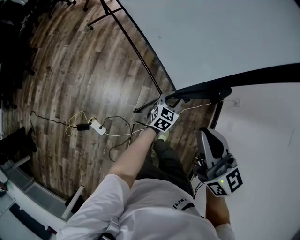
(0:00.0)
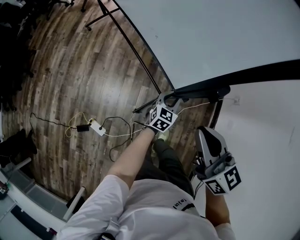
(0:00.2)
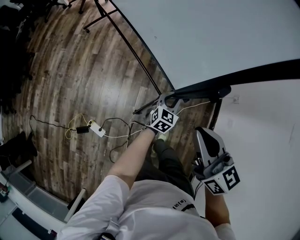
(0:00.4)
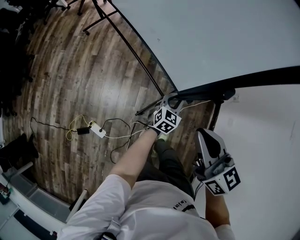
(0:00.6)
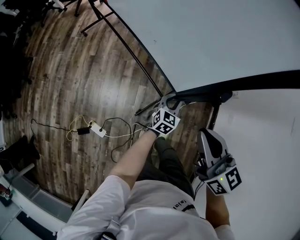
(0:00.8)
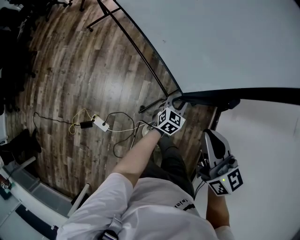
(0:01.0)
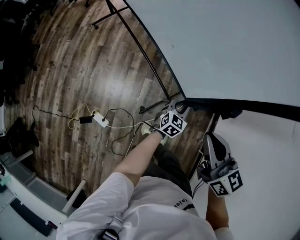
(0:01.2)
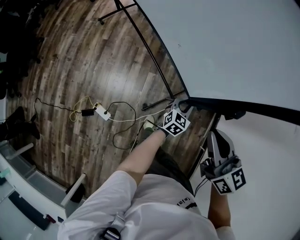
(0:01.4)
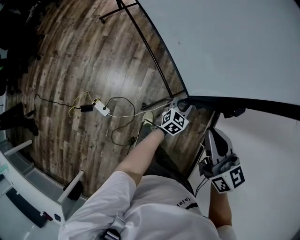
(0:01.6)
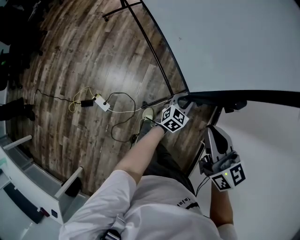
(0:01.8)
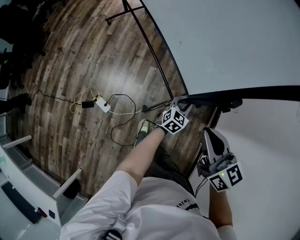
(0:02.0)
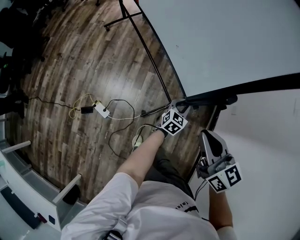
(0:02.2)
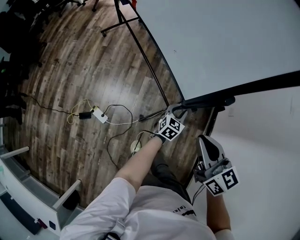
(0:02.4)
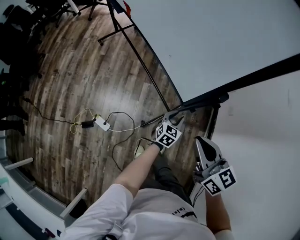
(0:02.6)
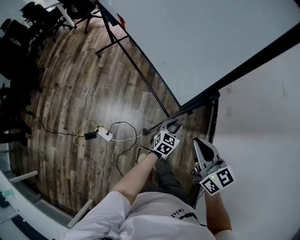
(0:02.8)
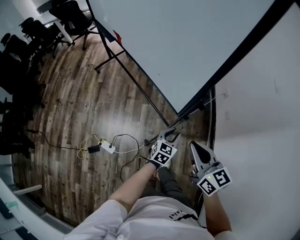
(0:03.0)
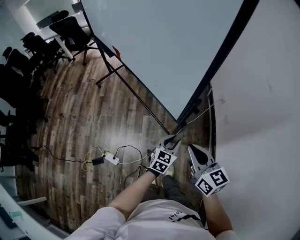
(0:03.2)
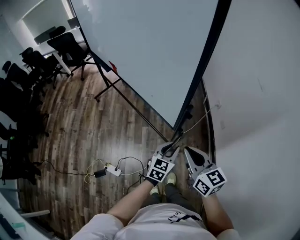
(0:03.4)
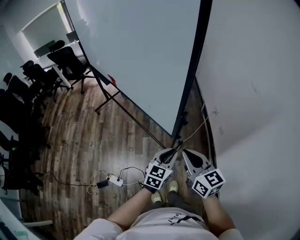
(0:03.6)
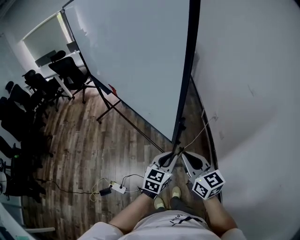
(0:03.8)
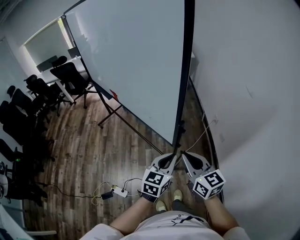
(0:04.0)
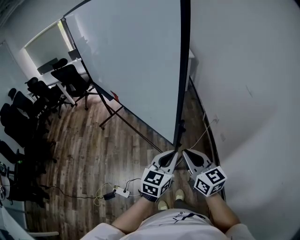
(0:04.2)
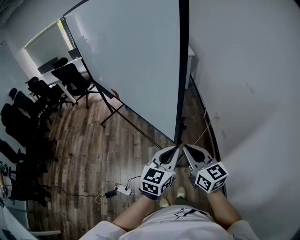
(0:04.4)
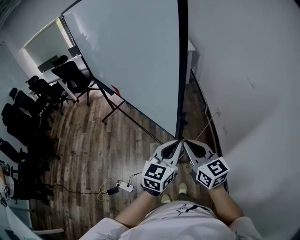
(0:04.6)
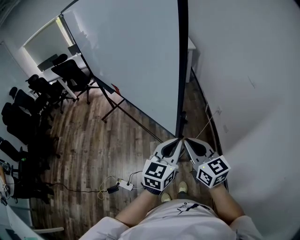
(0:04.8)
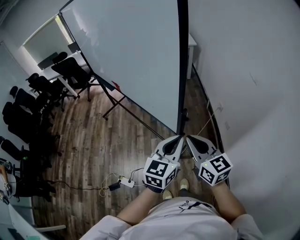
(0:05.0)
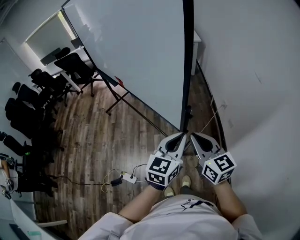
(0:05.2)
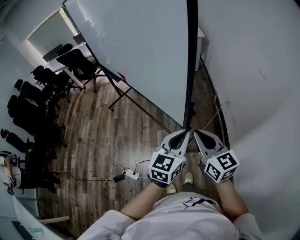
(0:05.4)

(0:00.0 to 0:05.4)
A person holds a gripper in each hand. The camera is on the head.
0:00.0 - 0:01.4: Both grippers move backward and to the right, roughly 15 cm.
0:01.4 - 0:02.8: The two grippers go about 15 cm backward.
0:02.8 - 0:04.0: The right gripper heads upward, covering some 10 cm. The left gripper moves upward, approximately 30 cm, and closes.
0:04.0 - 0:05.4: The left gripper goes approximately 5 cm upward.

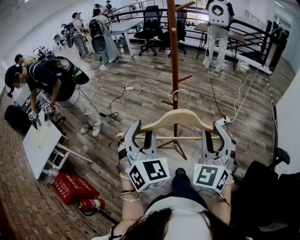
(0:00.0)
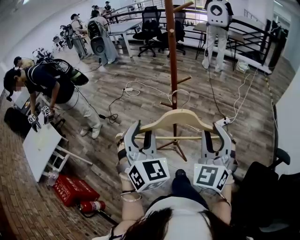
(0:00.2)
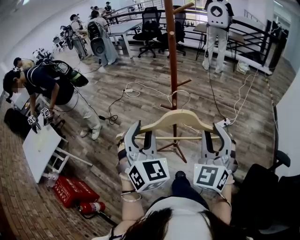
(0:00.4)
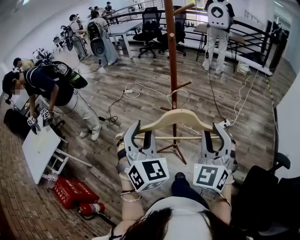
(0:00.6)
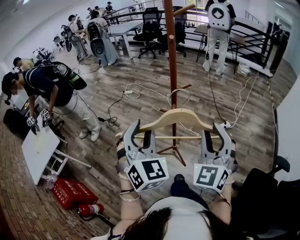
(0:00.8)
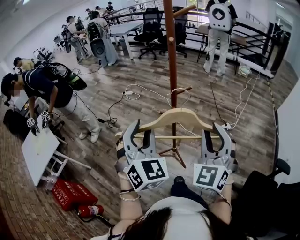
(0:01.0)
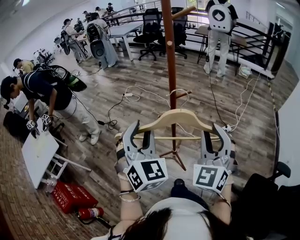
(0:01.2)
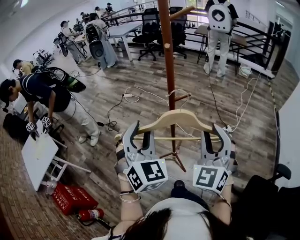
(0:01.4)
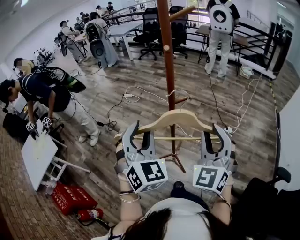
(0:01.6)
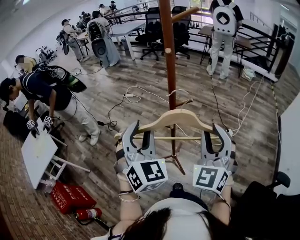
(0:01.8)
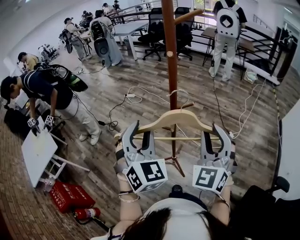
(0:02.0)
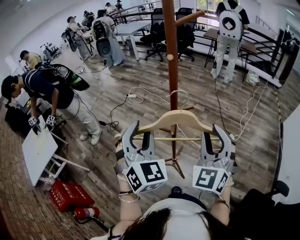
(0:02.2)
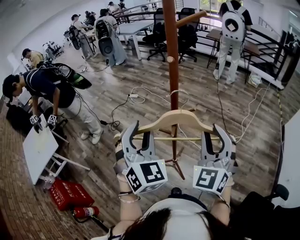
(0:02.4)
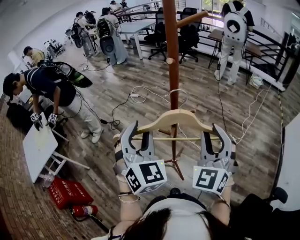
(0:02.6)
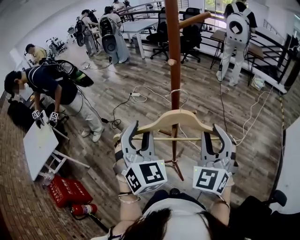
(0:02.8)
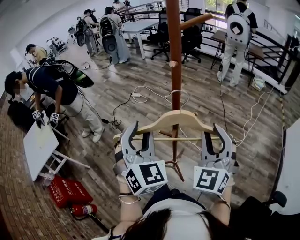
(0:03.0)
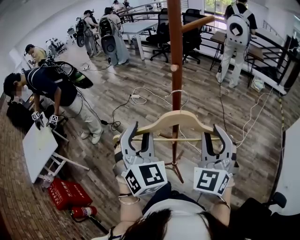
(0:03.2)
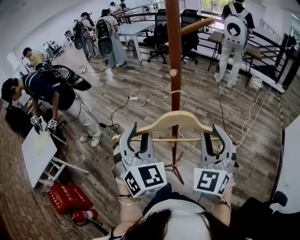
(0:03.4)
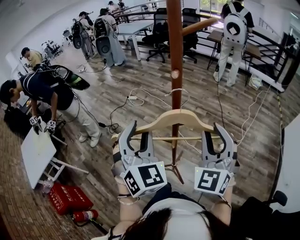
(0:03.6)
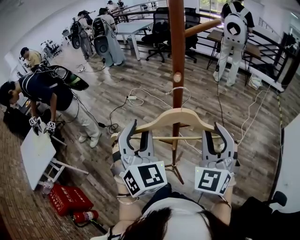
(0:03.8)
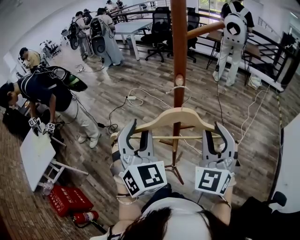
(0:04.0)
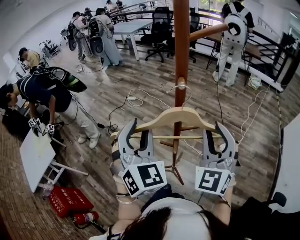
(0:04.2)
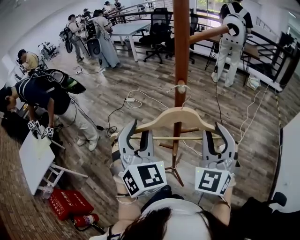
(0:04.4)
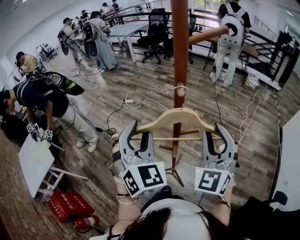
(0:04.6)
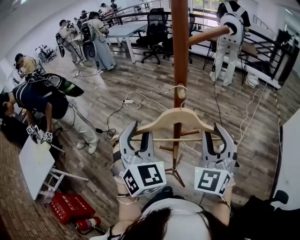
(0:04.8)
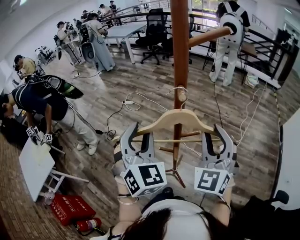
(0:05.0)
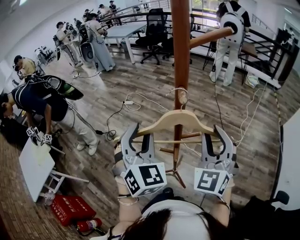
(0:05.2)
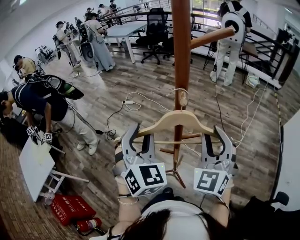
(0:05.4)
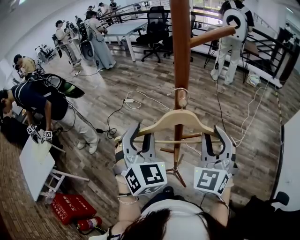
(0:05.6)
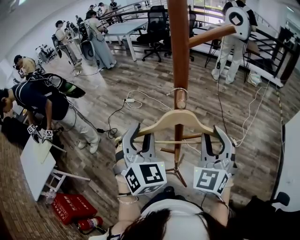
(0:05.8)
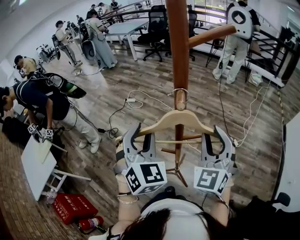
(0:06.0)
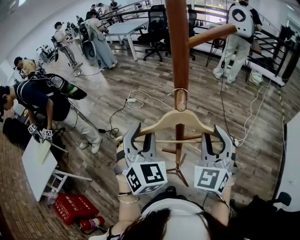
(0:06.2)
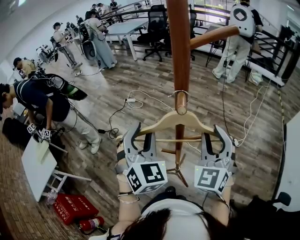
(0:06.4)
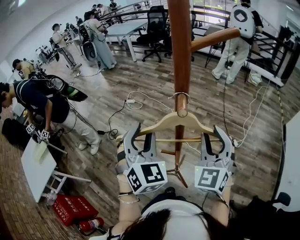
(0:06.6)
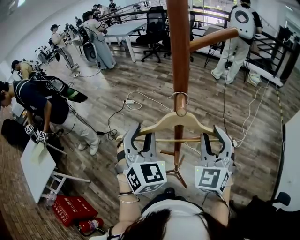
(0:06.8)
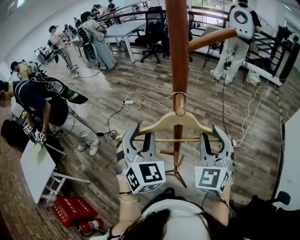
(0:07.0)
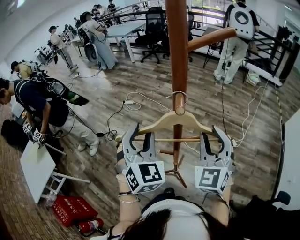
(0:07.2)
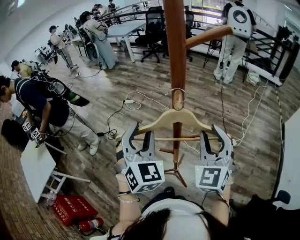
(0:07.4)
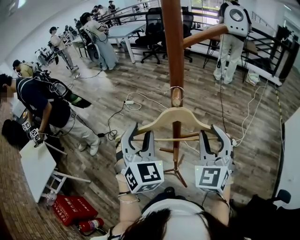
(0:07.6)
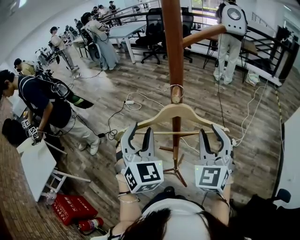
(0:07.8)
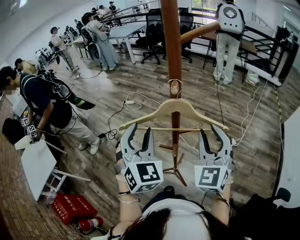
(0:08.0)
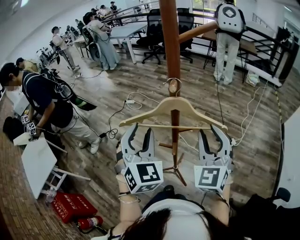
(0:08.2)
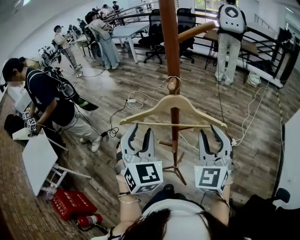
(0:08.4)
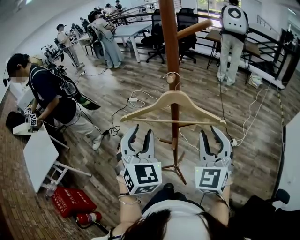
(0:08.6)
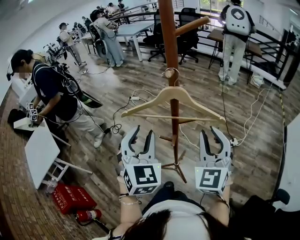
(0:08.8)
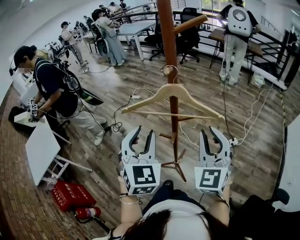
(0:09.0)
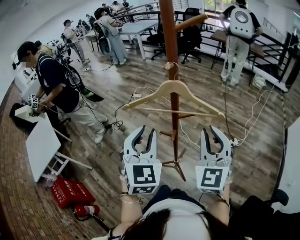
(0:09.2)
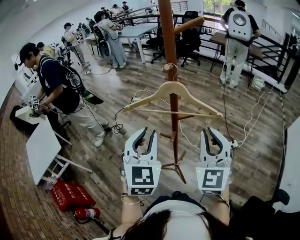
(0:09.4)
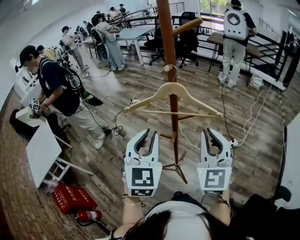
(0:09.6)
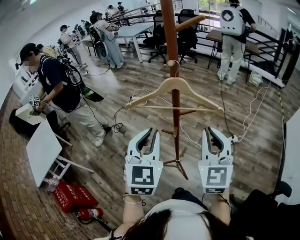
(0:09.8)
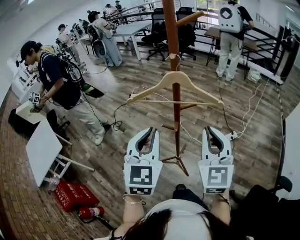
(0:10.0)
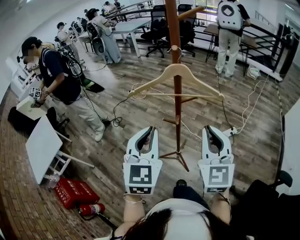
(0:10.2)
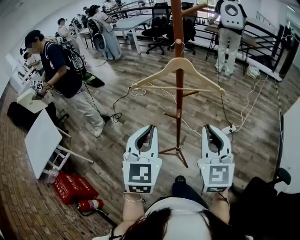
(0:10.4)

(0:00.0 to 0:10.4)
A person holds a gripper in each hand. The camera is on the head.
0:00.0 - 0:01.4: Both grippers move forward, about 10 cm.
0:01.4 - 0:03.0: The grippers both shift forward by some 10 cm.
0:03.0 - 0:04.4: Both grippers travel together forward, roughly 5 cm.
0:04.4 - 0:06.0: The right gripper ends up about 5 cm from where it was. Meanwhile the left gripper ends up approximately 5 cm from where it was.
0:06.0 - 0:07.4: The grippers make only small movements.
0:07.4 - 0:09.0: The grippers both shift backward by roughly 10 cm.
0:09.0 - 0:10.4: The two grippers go about 10 cm backward. The left gripper closes its fingers.

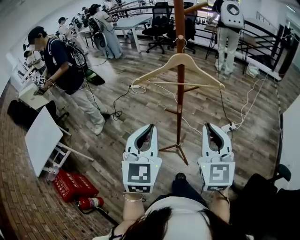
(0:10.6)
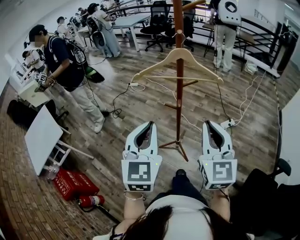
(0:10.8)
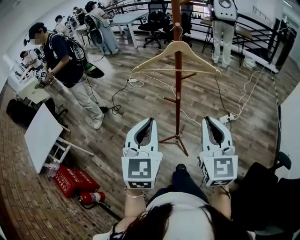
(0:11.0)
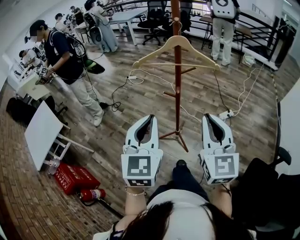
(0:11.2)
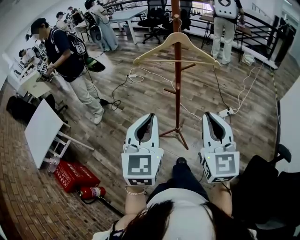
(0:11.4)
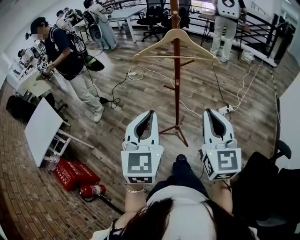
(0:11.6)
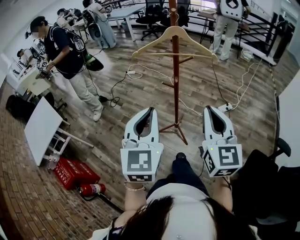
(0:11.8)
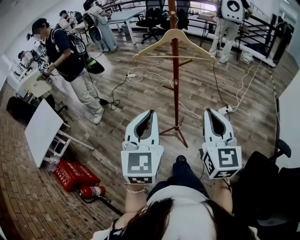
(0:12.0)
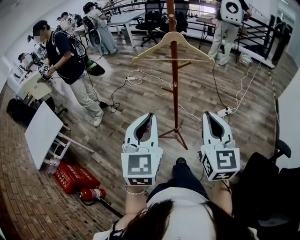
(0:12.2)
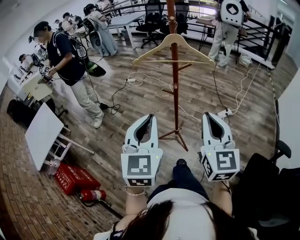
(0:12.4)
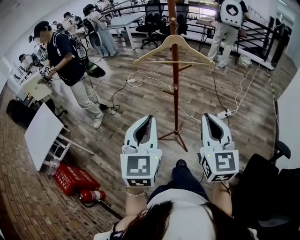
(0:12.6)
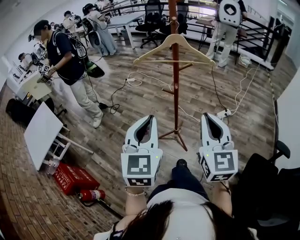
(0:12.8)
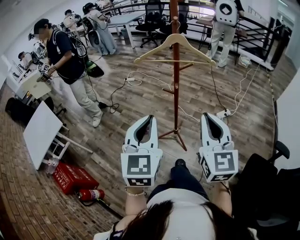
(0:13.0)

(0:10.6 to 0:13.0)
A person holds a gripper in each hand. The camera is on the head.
0:10.6 - 0:11.8: Both grippers travel together backward, about 10 cm.
0:11.8 - 0:13.0: The grippers stay close to where they were, moving slightly.

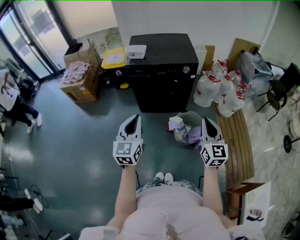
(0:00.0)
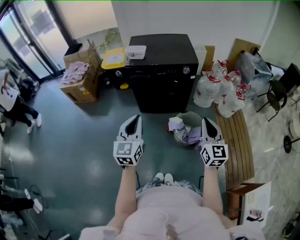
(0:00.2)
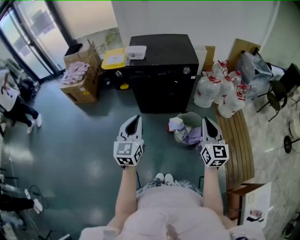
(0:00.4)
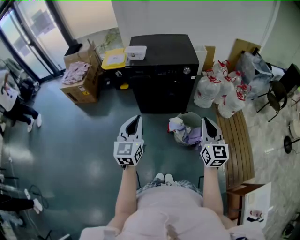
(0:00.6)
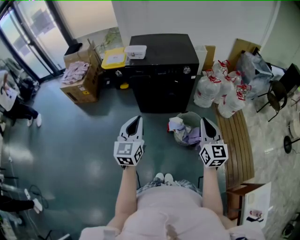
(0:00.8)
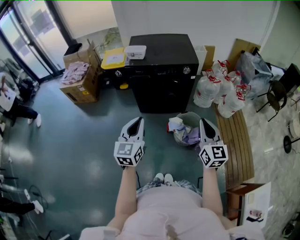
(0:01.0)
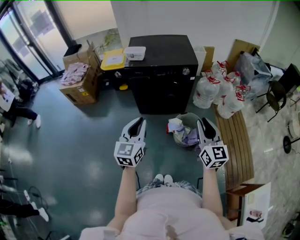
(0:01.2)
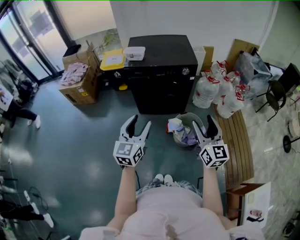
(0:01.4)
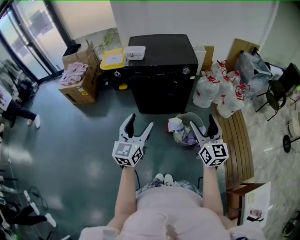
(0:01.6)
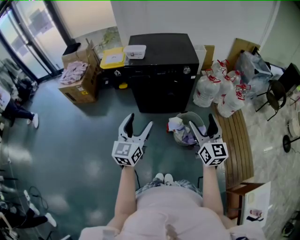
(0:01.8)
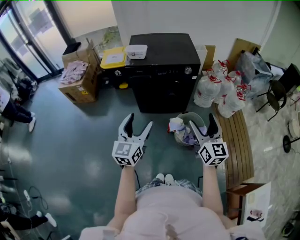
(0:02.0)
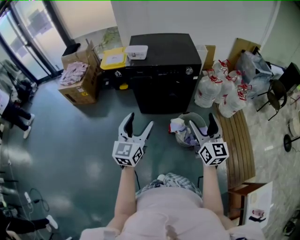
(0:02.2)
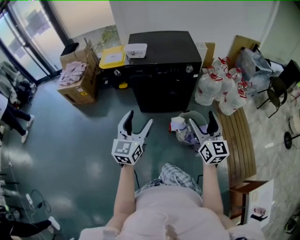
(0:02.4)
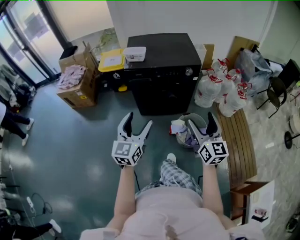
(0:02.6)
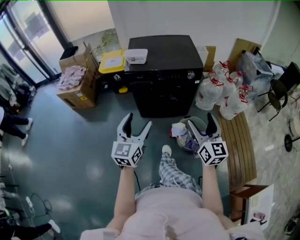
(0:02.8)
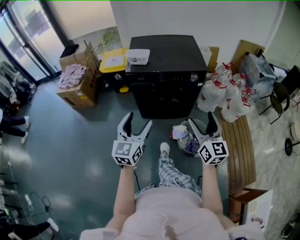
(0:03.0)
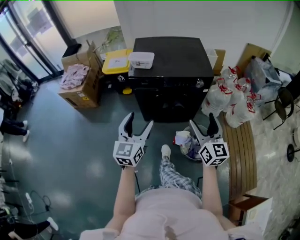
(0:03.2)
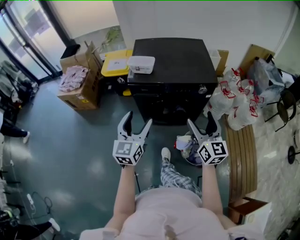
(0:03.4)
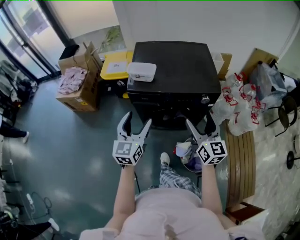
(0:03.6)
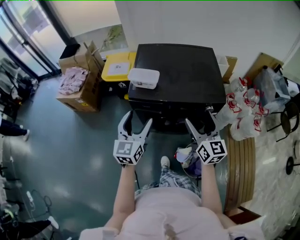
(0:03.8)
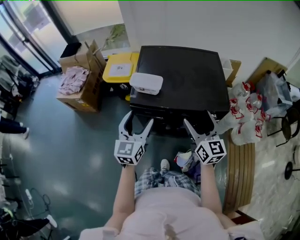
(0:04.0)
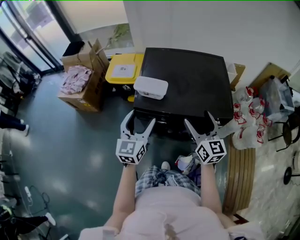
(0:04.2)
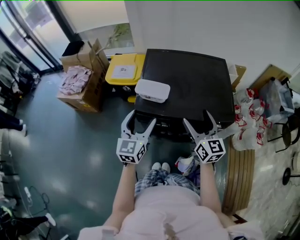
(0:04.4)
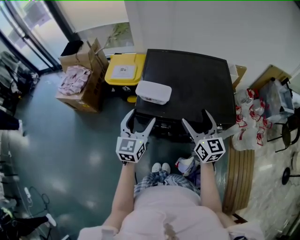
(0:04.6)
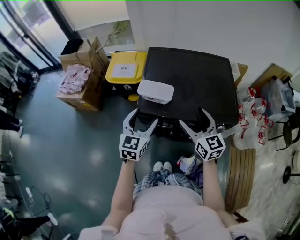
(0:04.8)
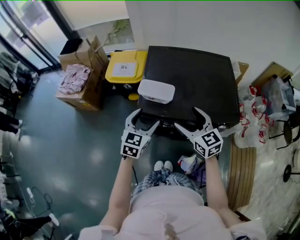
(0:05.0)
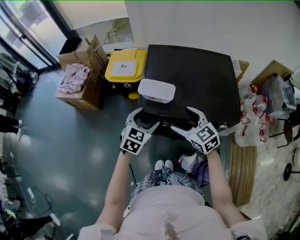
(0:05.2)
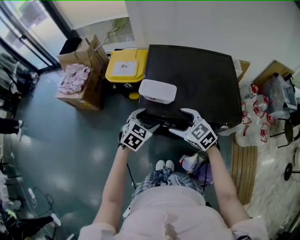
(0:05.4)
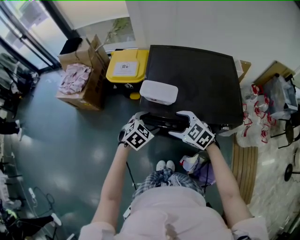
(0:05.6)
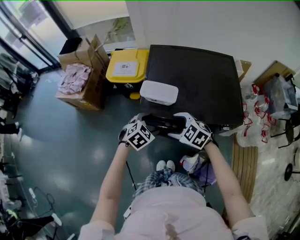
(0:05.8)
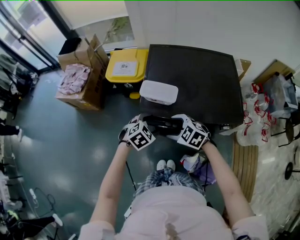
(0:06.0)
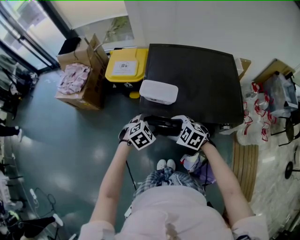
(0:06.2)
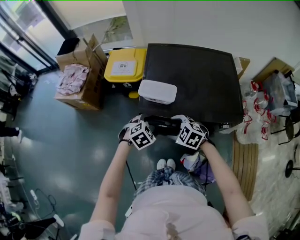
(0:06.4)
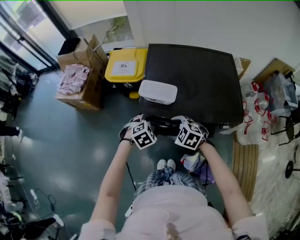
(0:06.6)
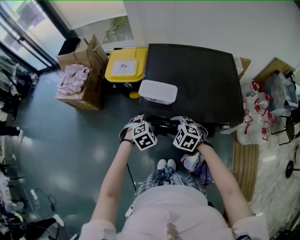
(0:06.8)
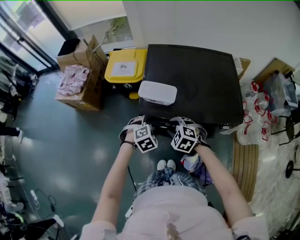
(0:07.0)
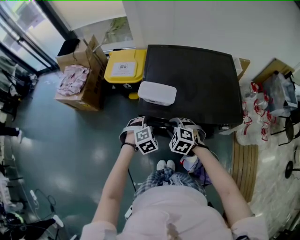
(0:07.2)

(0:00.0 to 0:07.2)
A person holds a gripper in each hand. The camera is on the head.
0:00.0 - 0:01.4: The right gripper opens. The left gripper opens its fingers.
0:01.4 - 0:02.8: The right gripper shifts approximately 10 cm forward and to the left, while the left gripper shifts about 10 cm forward.
0:02.8 - 0:04.4: The pair of grippers is taken forward, about 40 cm.
0:04.4 - 0:05.8: The left gripper moves downward, approximately 15 cm, and tips its fingers downward by about 50 degrees. The right gripper goes some 20 cm to the left and downward, and angles its fingers downward, by about 40 degrees.
0:05.8 - 0:07.2: The left gripper changes its angle by roughly 20 degrees. Meanwhile the right gripper shifts some 5 cm downward, swivels about 20 degrees, and closes up.
